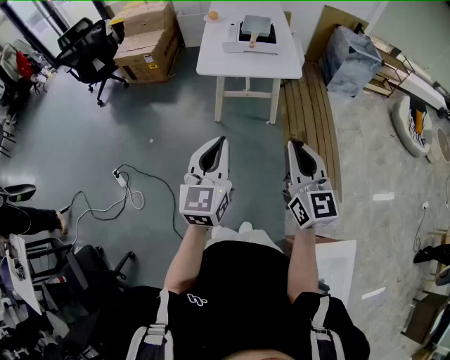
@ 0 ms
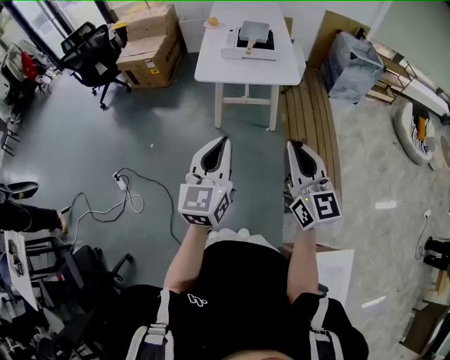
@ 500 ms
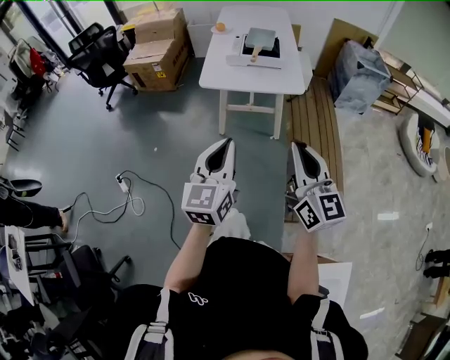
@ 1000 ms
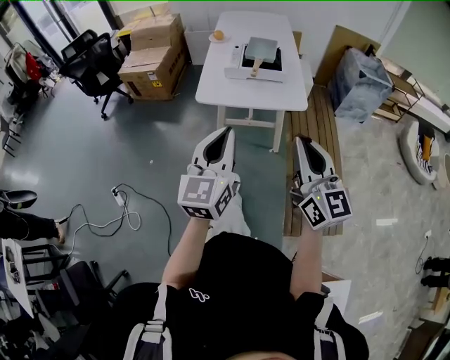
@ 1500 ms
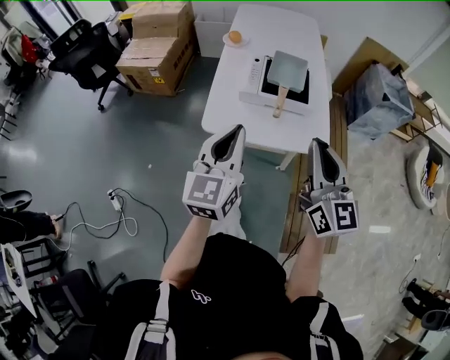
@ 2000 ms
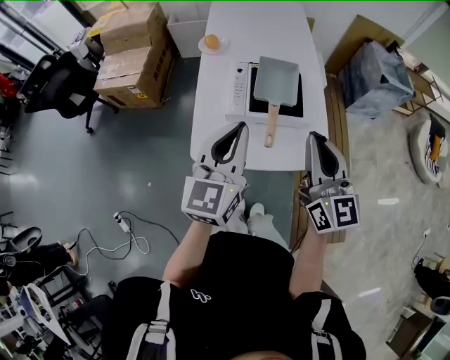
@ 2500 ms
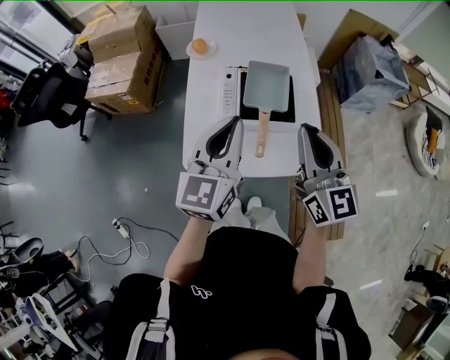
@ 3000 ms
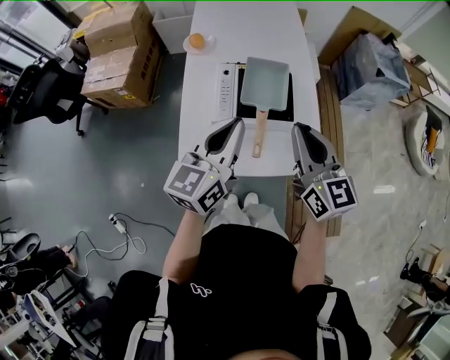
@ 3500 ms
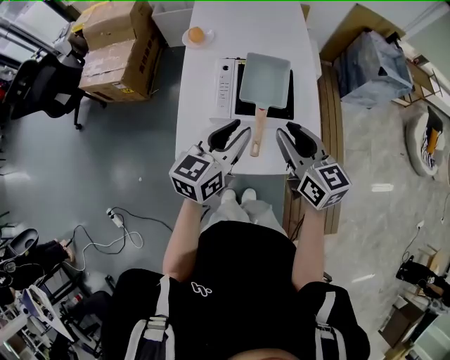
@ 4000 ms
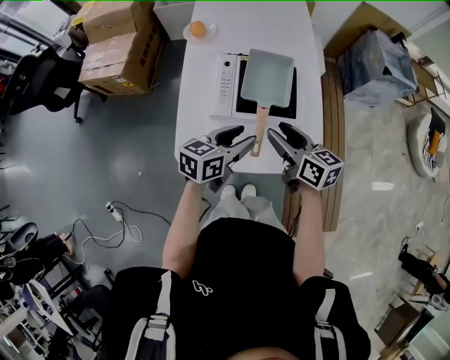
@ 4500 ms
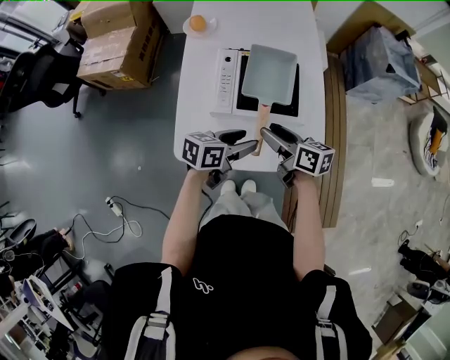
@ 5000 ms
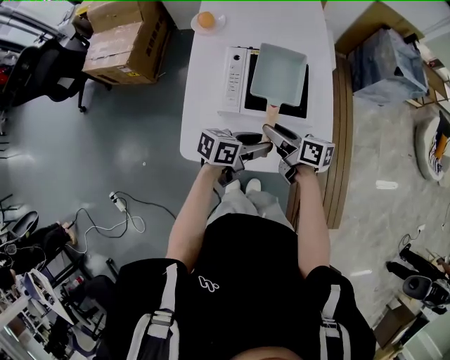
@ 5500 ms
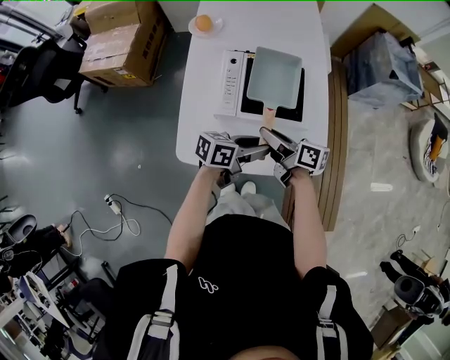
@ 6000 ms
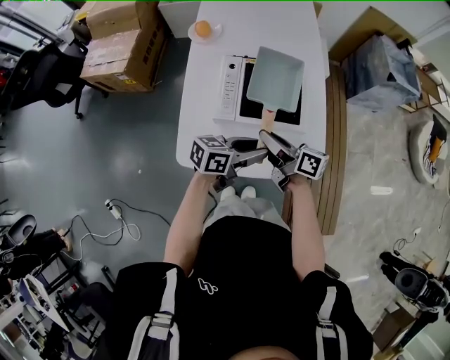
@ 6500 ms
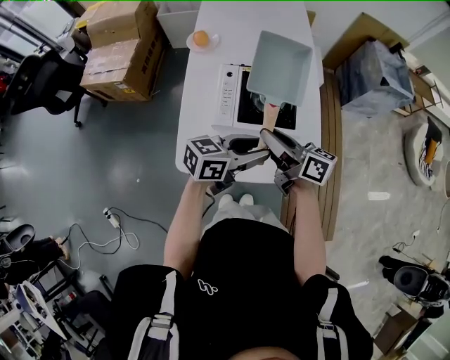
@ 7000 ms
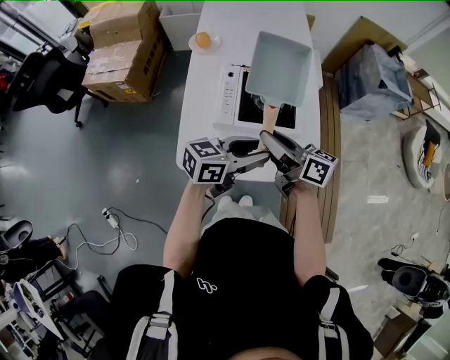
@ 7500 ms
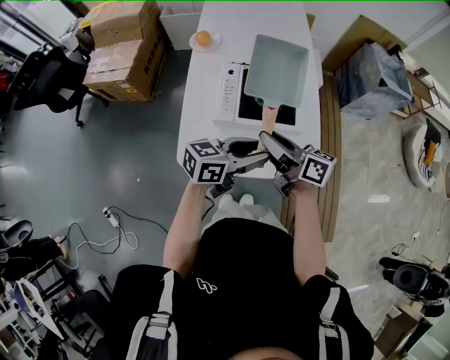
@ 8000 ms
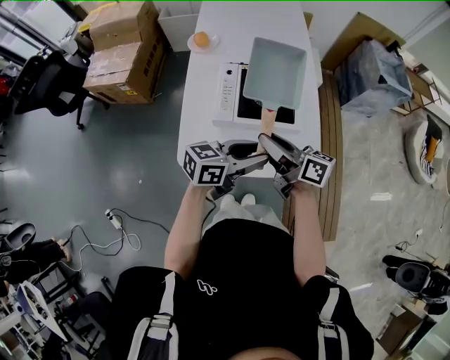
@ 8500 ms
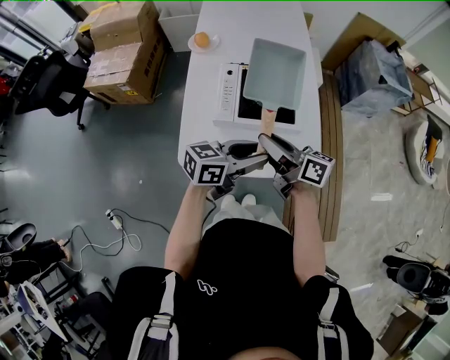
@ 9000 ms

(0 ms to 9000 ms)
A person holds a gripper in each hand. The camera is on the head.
0 ms - 2000 ms: Both grippers are carried forward, some 40 cm.
2000 ms - 4500 ms: Both grippers move forward and downward, about 30 cm. The left gripper turns by some 50 degrees, and opens its fingers; the right gripper changes its angle by some 40 degrees, and opens up.
4500 ms - 7000 ms: The left gripper moves approximately 5 cm, and turns by some 20 degrees, while the right gripper reaches approximately 10 cm downward, then returns, and changes its angle by some 20 degrees.
7000 ms - 9000 ms: The grippers stay close to where they were, moving slightly.

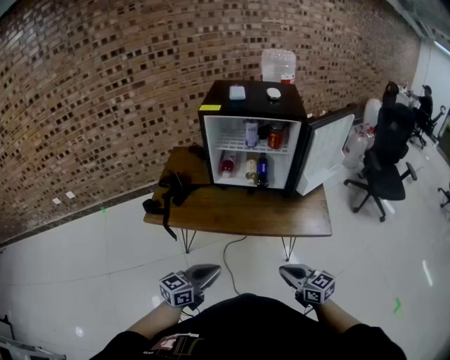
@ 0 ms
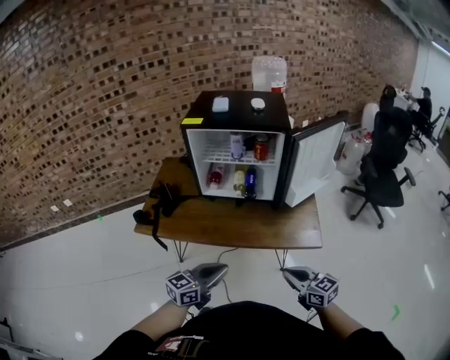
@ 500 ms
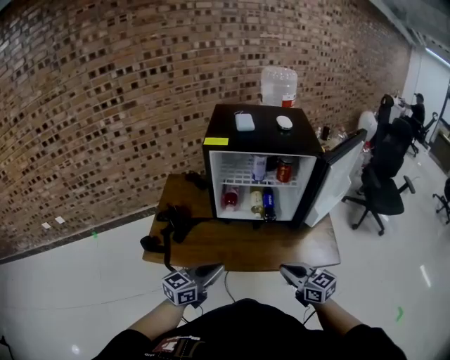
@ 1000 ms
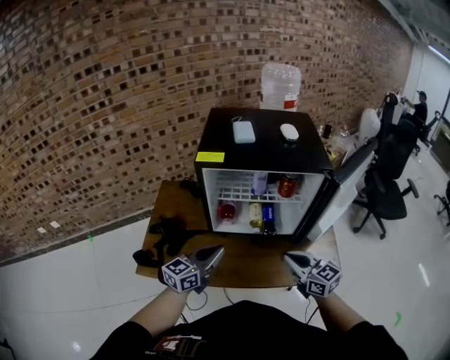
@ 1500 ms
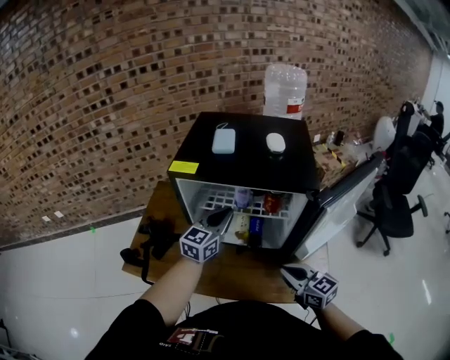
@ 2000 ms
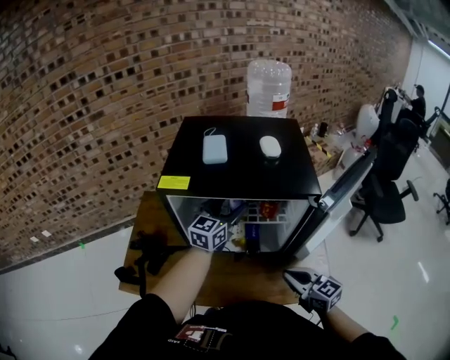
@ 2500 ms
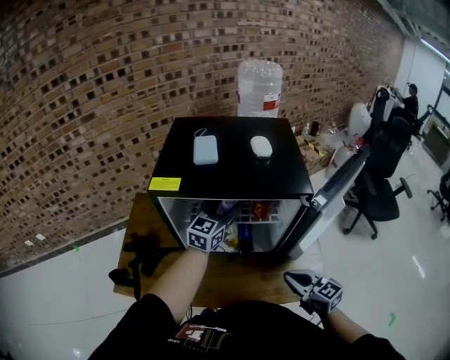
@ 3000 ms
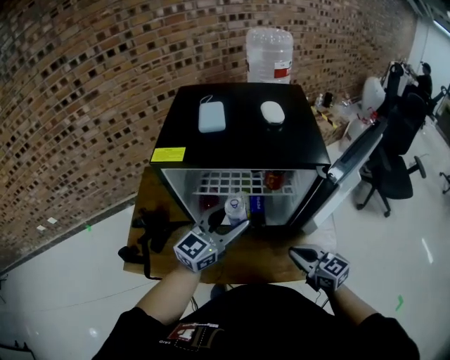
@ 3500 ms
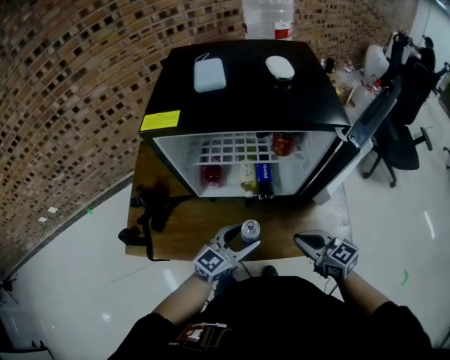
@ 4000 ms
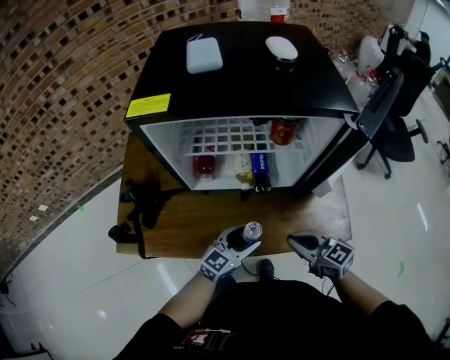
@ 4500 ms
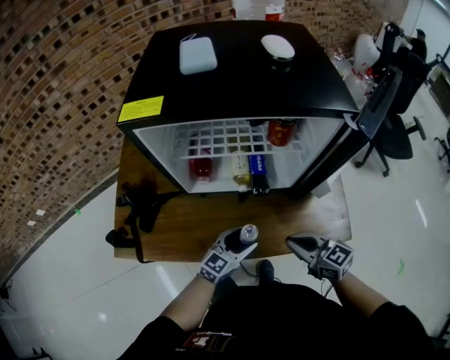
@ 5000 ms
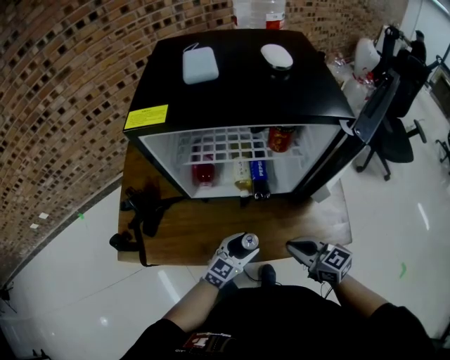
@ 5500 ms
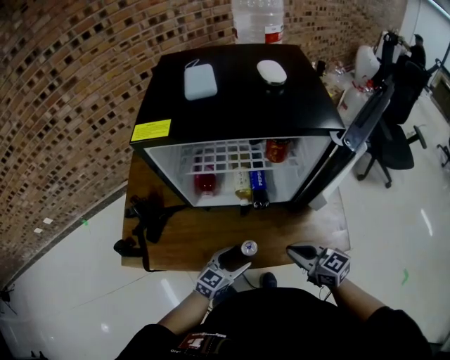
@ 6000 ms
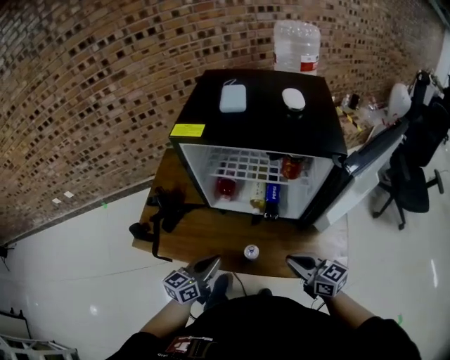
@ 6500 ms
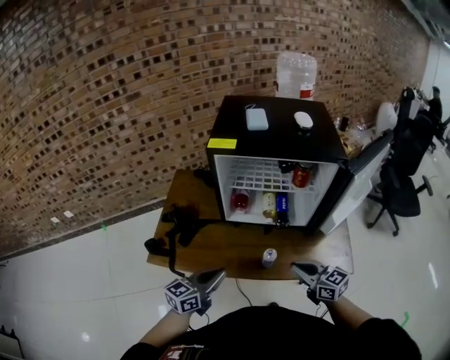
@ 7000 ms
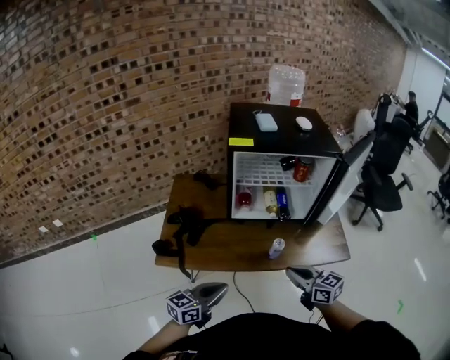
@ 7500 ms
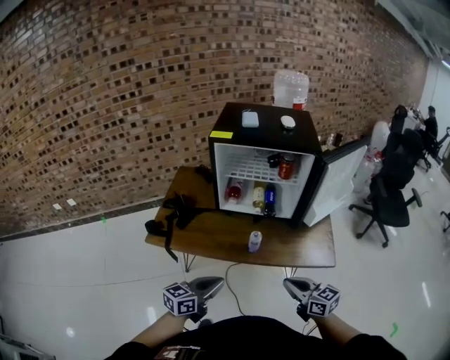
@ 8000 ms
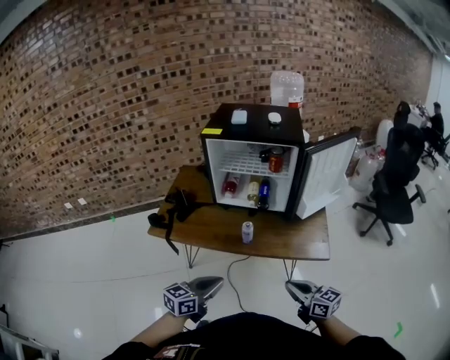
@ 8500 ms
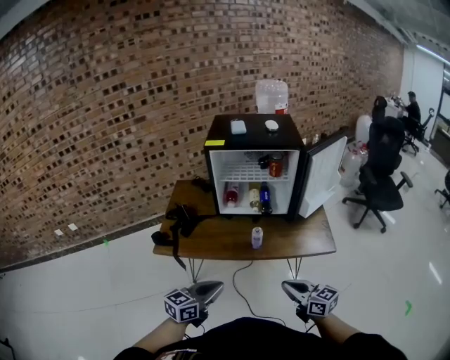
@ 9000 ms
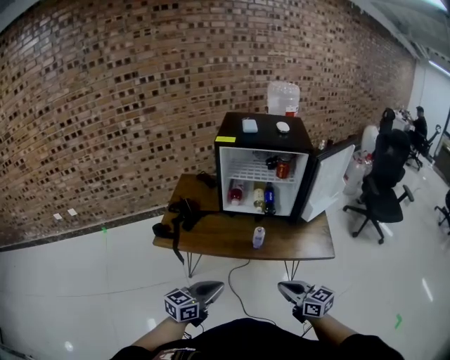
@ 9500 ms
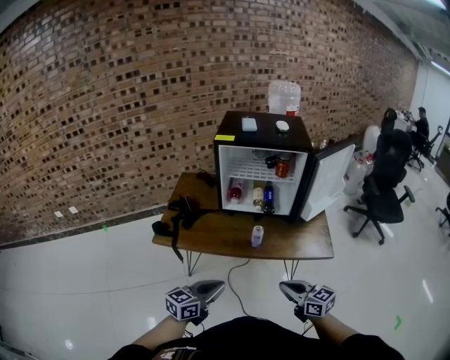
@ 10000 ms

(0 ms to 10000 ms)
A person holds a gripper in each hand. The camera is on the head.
0 ms - 2000 ms: The left gripper moves forward, approximately 50 cm, and turns by some 30 degrees. The right gripper shifts about 35 cm forward.
2000 ms - 4000 ms: The right gripper travels downward by about 10 cm. The left gripper heads downward and backward, covering some 25 cm, turns by about 30 degrees, and opens.
4000 ms - 6000 ms: The left gripper travels downward by roughly 10 cm.
6000 ms - 8000 ms: The left gripper shifts some 35 cm backward, upward and to the left, swivels some 20 degrees, and closes its fingers; the right gripper travels backward by about 25 cm.
8000 ms - 10000 ms: The grippers both shift backward by roughly 10 cm. The left gripper goes to the right and returns, about 5 cm each way. The right gripper goes to the right and returns, some 5 cm each way.

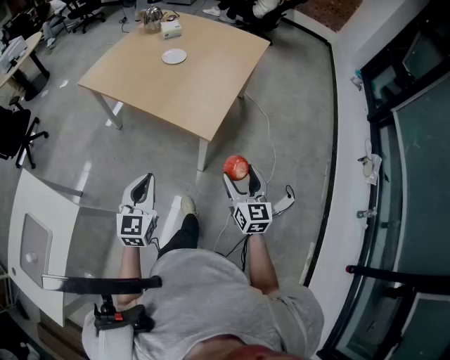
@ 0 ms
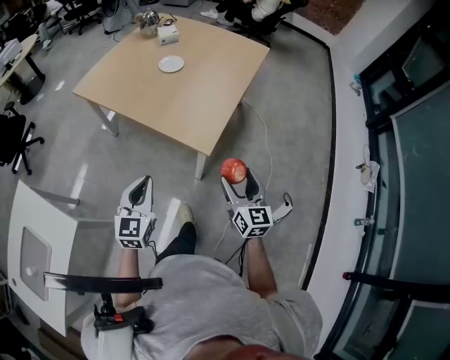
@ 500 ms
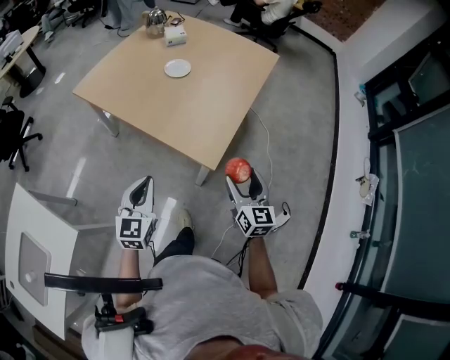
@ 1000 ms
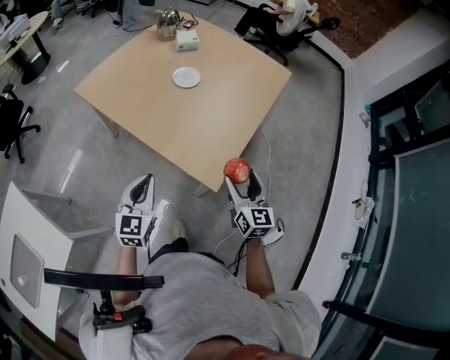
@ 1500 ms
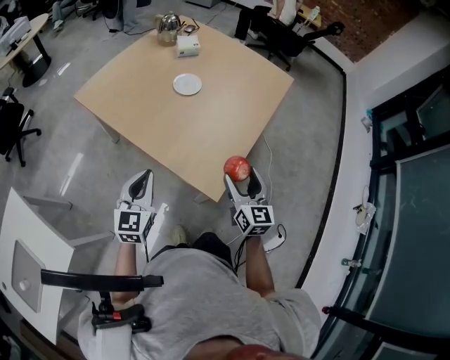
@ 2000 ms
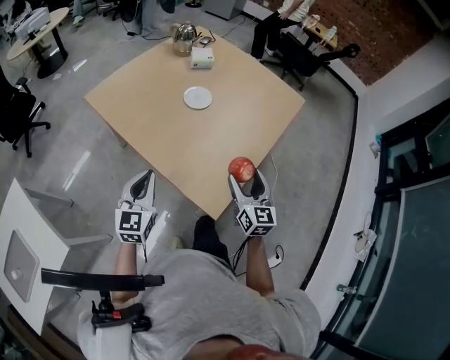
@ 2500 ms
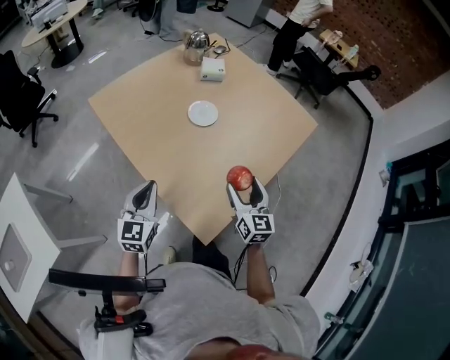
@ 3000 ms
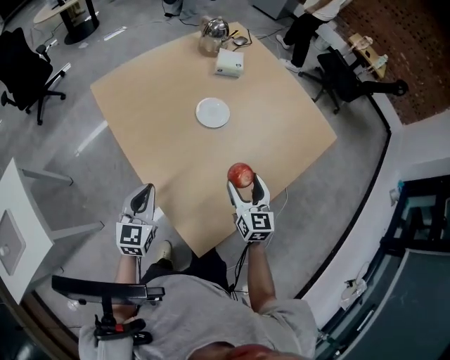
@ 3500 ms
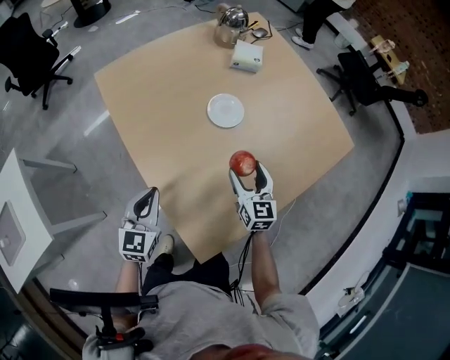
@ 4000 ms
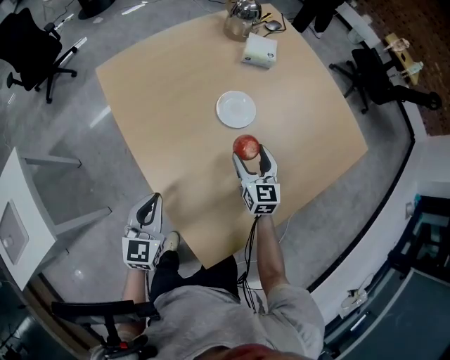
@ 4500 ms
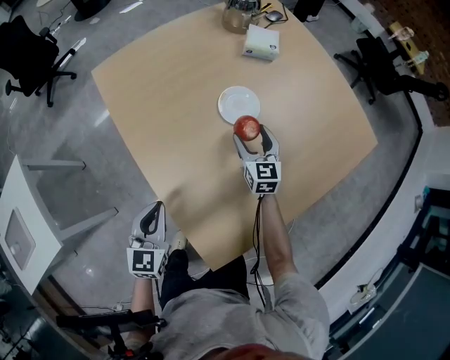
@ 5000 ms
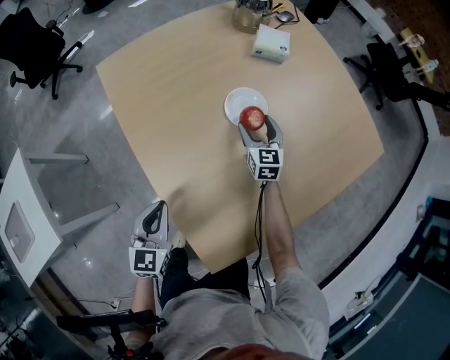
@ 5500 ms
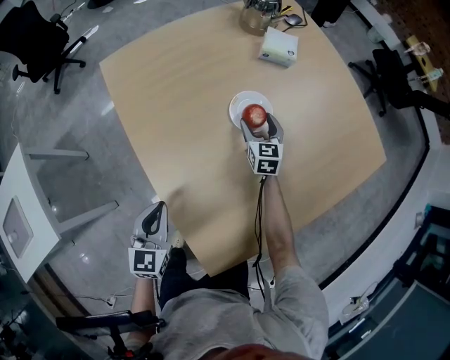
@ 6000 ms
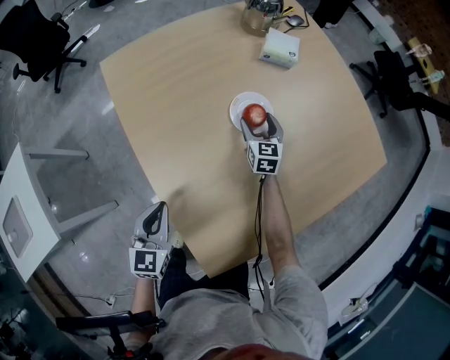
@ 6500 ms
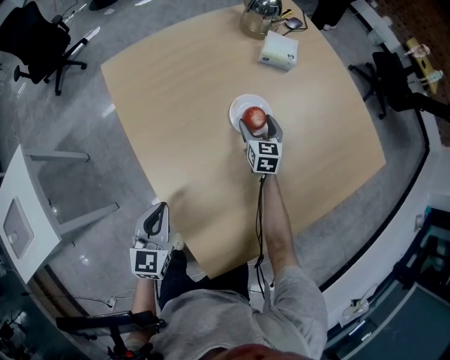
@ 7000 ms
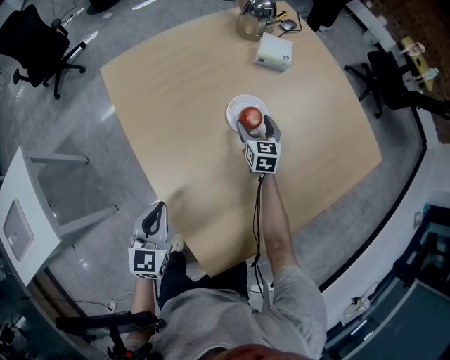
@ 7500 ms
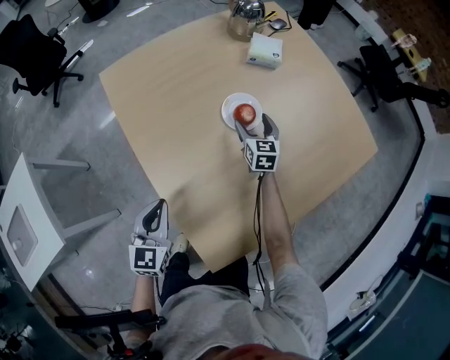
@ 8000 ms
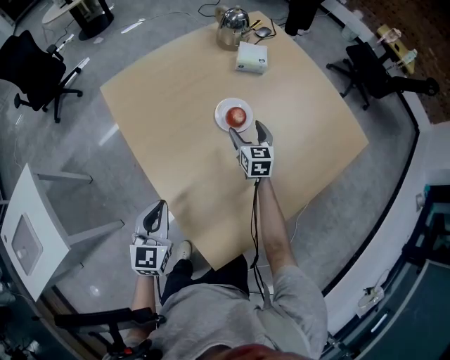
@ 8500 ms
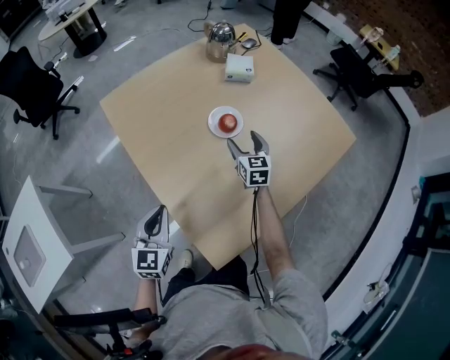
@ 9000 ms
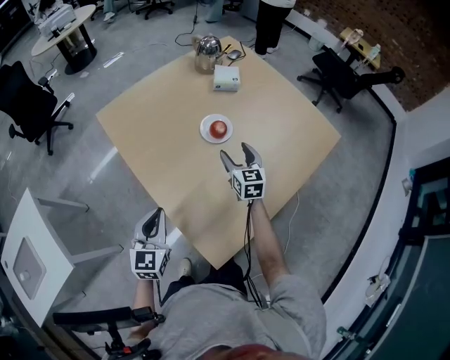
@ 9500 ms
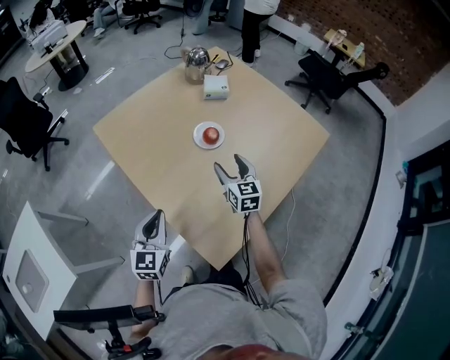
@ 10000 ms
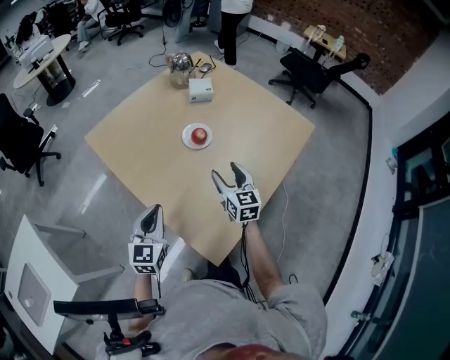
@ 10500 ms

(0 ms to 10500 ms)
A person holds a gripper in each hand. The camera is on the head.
0 ms - 2000 ms: Both grippers move forward, about 25 cm.
2000 ms - 4000 ms: The right gripper goes about 30 cm forward, and rotates about 30 degrees. Meanwhile the left gripper moves forward and downward, about 15 cm, and swivels about 20 degrees.
4000 ms - 6500 ms: The right gripper is displaced forward and downward by some 25 cm.
6500 ms - 8500 ms: The right gripper heads upward and backward, covering roughly 10 cm. Meanwhile the left gripper travels upward by approximately 5 cm.
8500 ms - 10500 ms: The left gripper goes some 5 cm upward; the right gripper heads backward and upward, covering some 25 cm.
